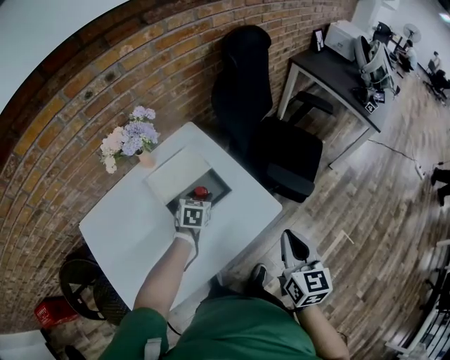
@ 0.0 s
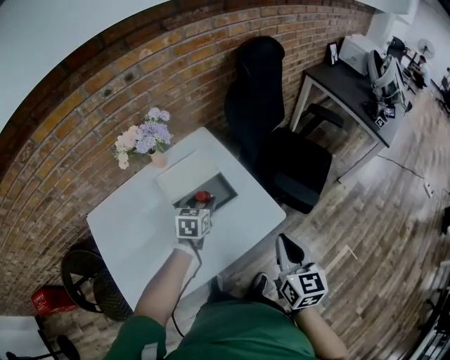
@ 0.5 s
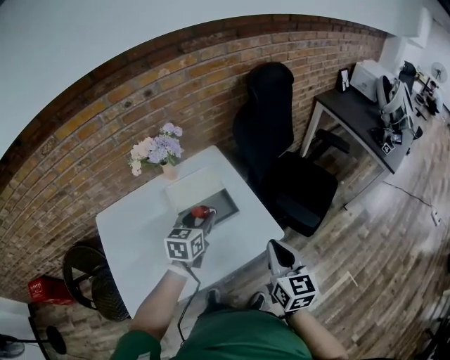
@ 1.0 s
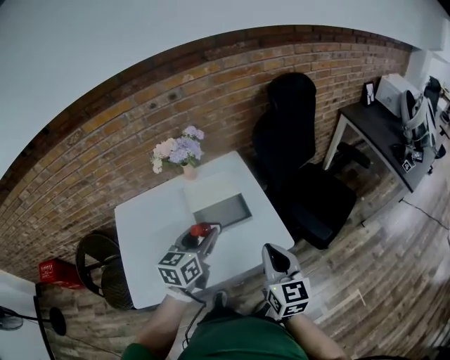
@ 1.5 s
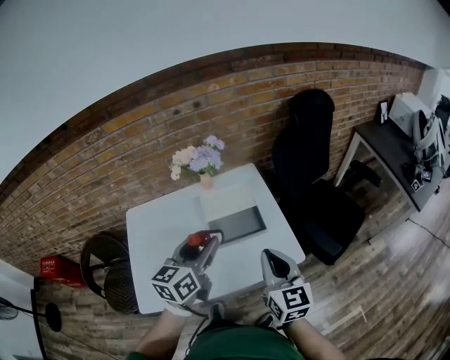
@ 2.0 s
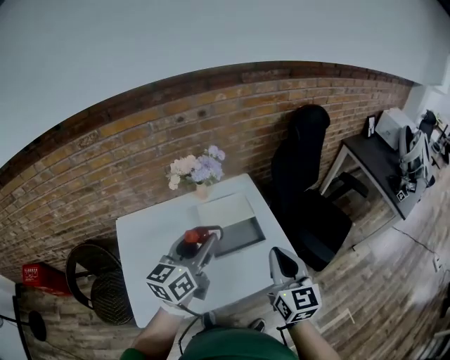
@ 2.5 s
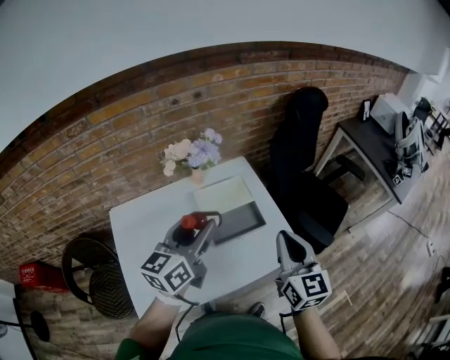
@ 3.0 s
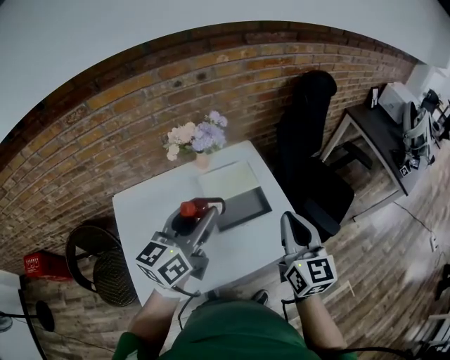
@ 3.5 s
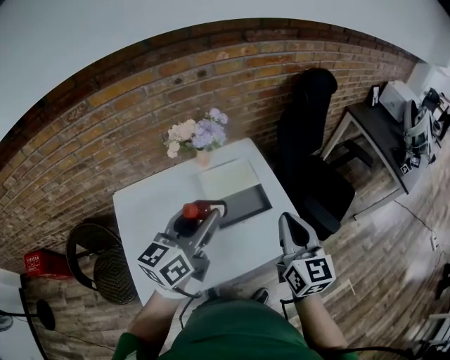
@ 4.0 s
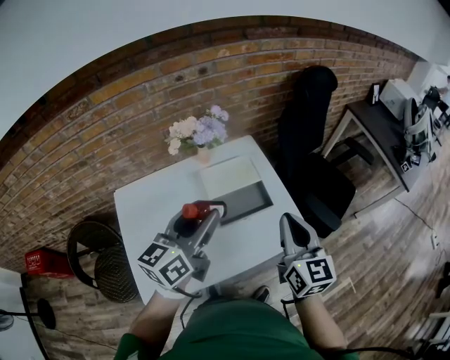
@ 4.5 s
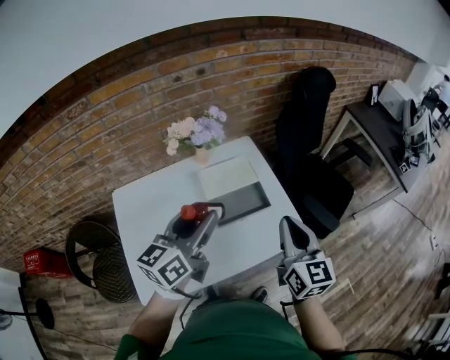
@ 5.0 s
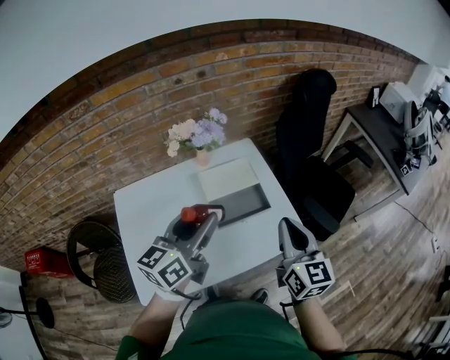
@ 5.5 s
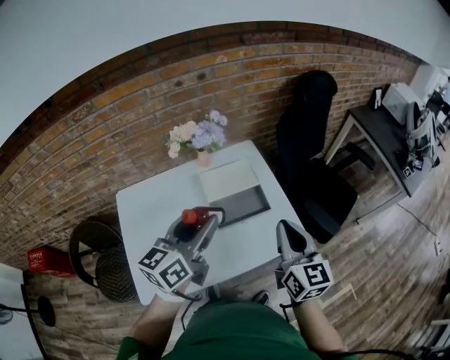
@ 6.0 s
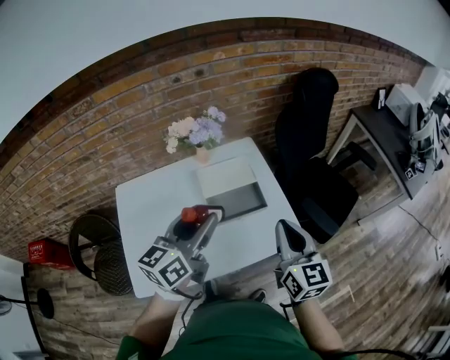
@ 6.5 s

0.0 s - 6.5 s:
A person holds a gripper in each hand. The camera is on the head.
0.0 s - 2.0 s: The left gripper moves upward and backward, roughly 30 cm, and tilts its fingers some 40 degrees upward; the right gripper moves to the left and upward, approximately 10 cm, and swivels some 30 degrees.
2.0 s - 4.5 s: The left gripper is displaced to the left by about 5 cm. Meanwhile the right gripper moves approximately 5 cm.
4.5 s - 6.5 s: The grippers stay close to where they were, moving slightly.

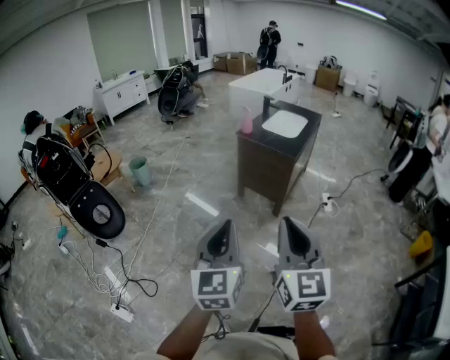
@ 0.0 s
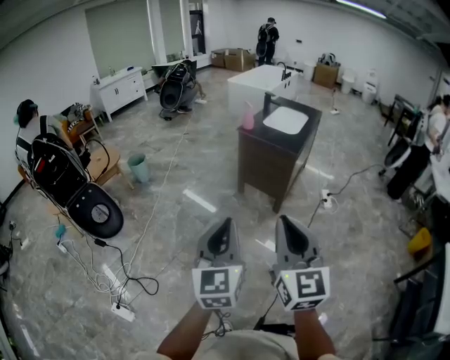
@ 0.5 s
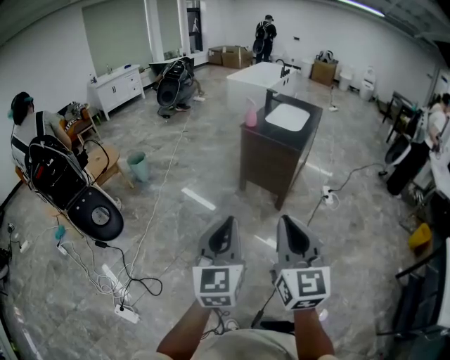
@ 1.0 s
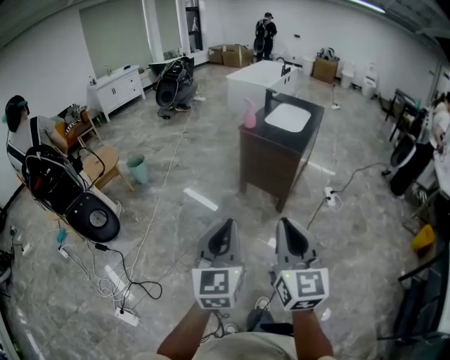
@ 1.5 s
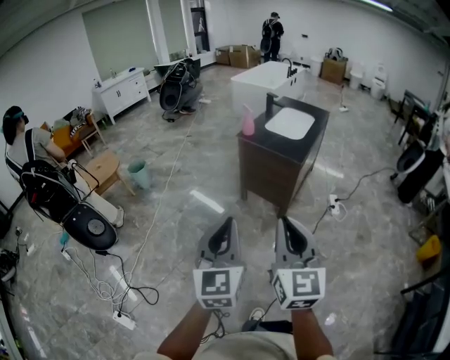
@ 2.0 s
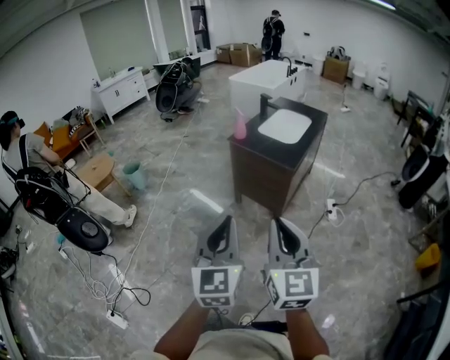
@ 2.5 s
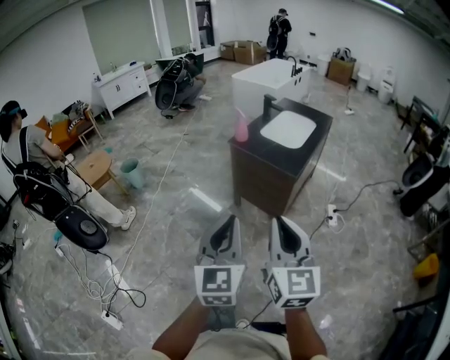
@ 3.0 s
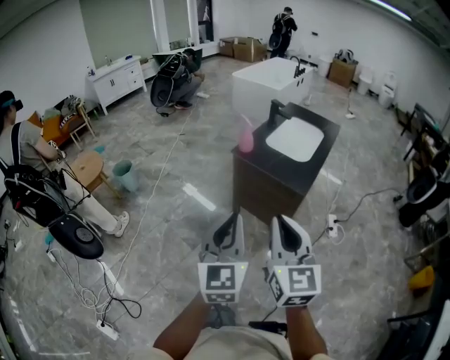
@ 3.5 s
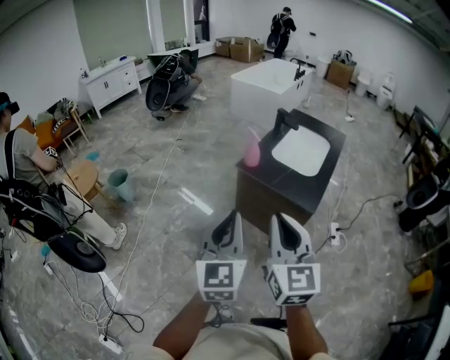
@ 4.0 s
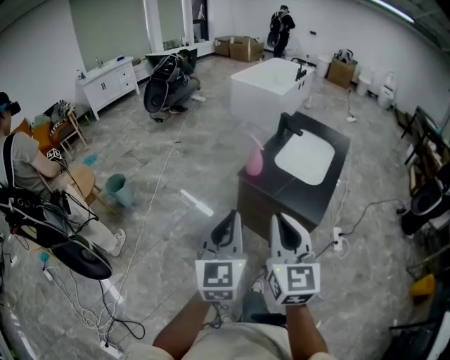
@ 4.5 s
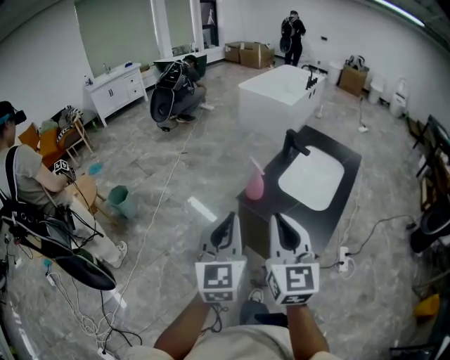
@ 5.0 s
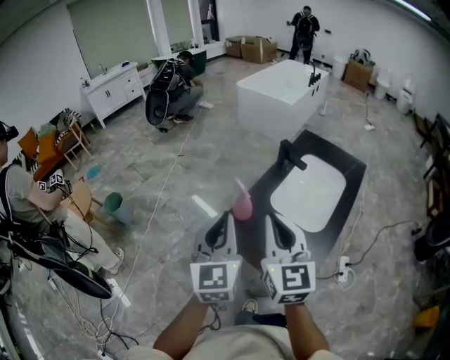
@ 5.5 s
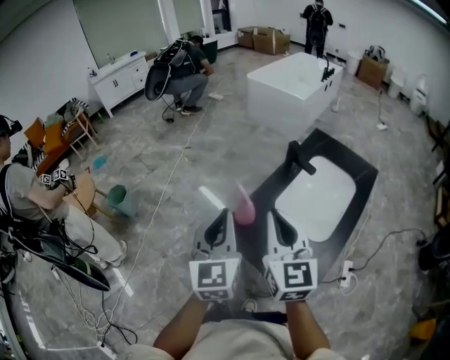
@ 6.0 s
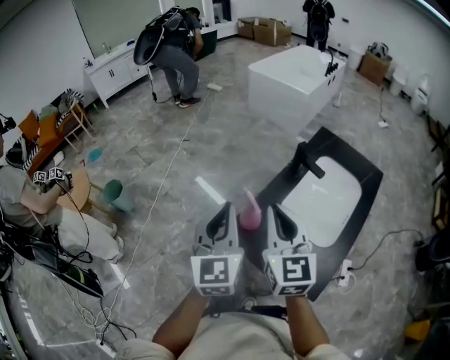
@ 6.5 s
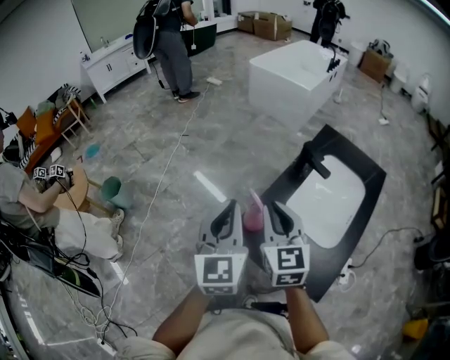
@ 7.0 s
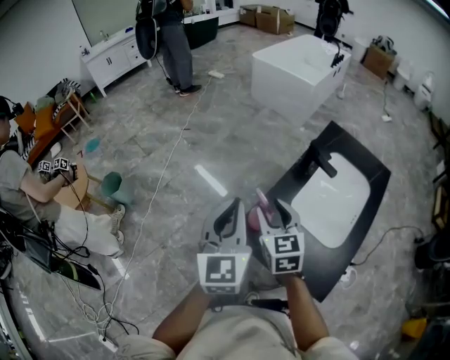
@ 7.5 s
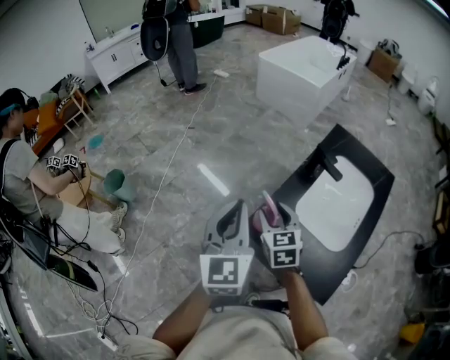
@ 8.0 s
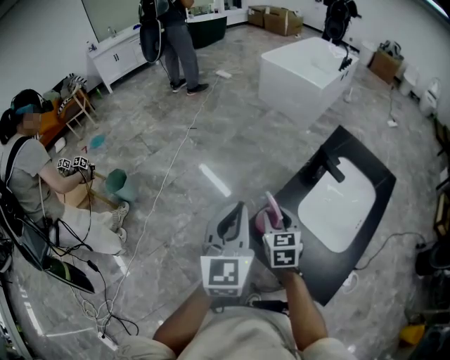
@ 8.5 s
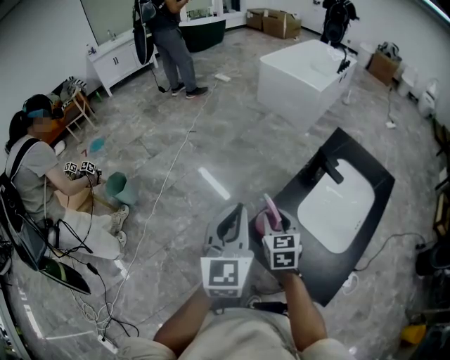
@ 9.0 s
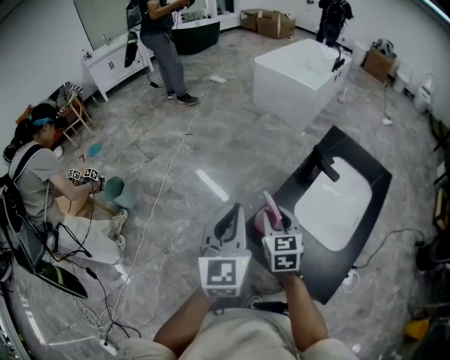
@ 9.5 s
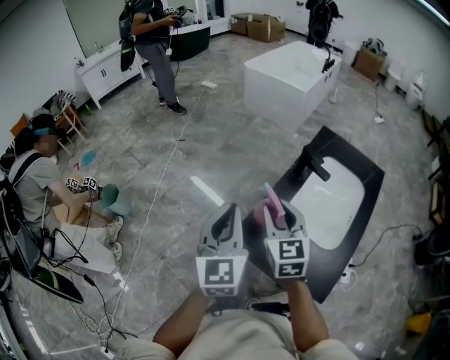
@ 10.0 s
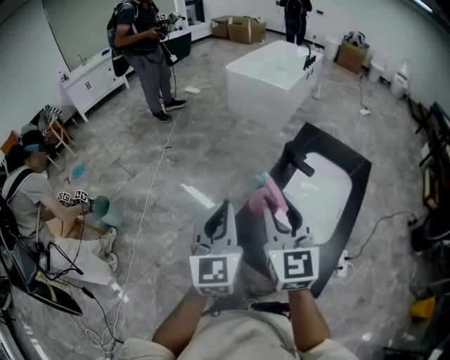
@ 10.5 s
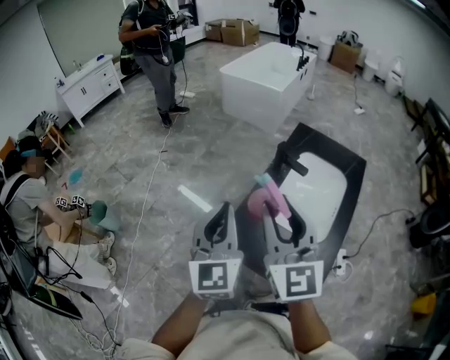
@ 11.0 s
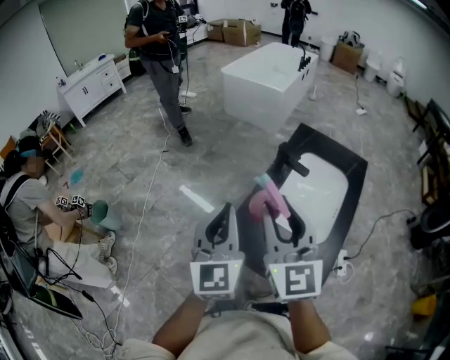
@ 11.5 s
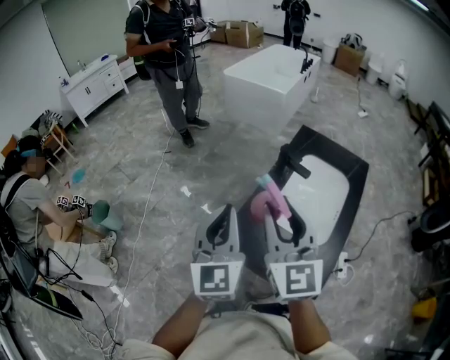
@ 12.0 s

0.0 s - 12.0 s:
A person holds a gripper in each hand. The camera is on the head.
0.0 s - 2.0 s: Both grippers move forward, about 15 cm.
2.0 s - 4.0 s: The grippers both shift forward by about 35 cm.
4.0 s - 6.0 s: The grippers both shift forward by some 35 cm.
6.0 s - 8.0 s: The right gripper shifts approximately 25 cm downward and forward, changes its angle by some 30 degrees, and opens, while the left gripper moves forward, some 10 cm.
8.0 s - 10.0 s: The right gripper heads upward, covering some 10 cm.
10.0 s - 12.0 s: The left gripper moves about 5 cm. The right gripper travels upward and backward by about 15 cm, and turns by approximately 20 degrees.

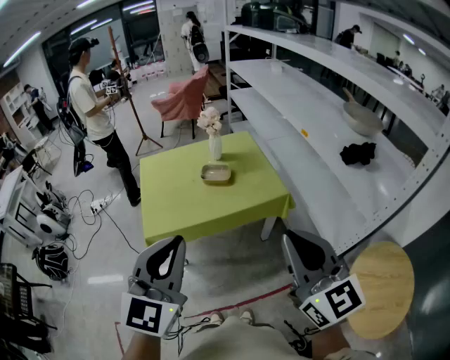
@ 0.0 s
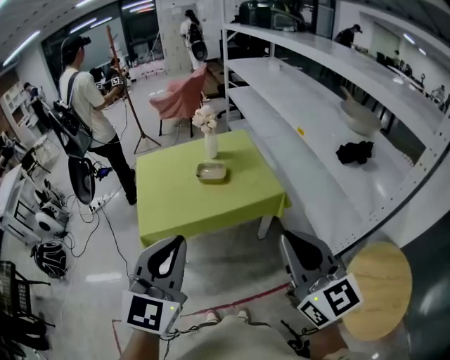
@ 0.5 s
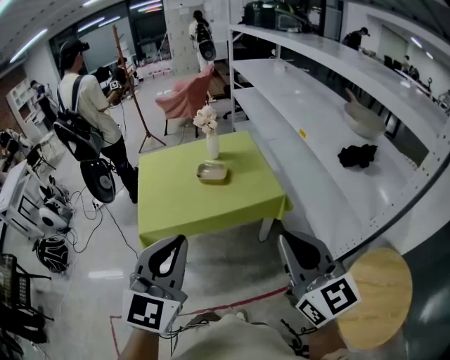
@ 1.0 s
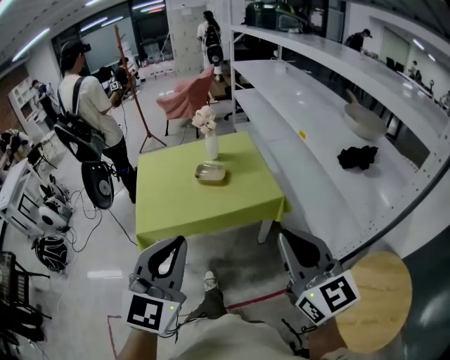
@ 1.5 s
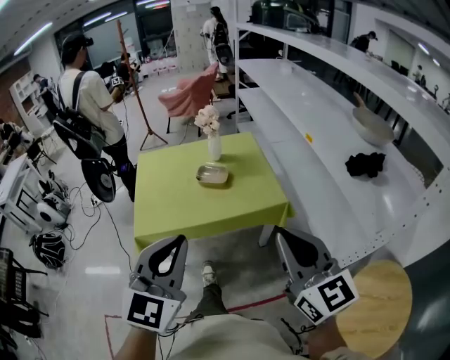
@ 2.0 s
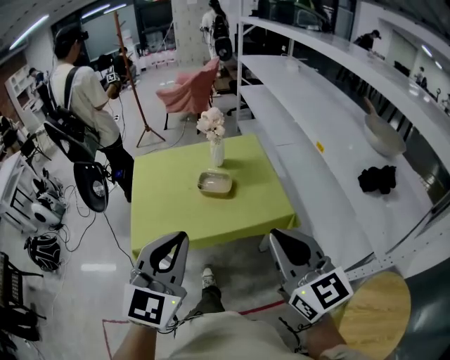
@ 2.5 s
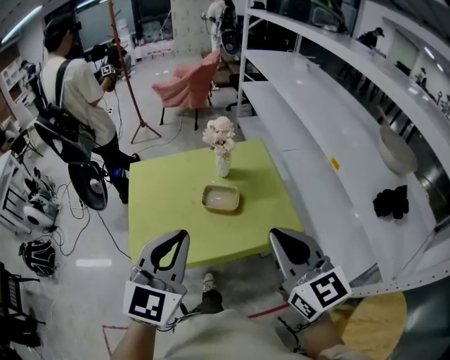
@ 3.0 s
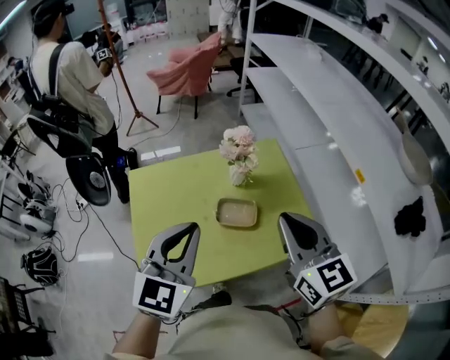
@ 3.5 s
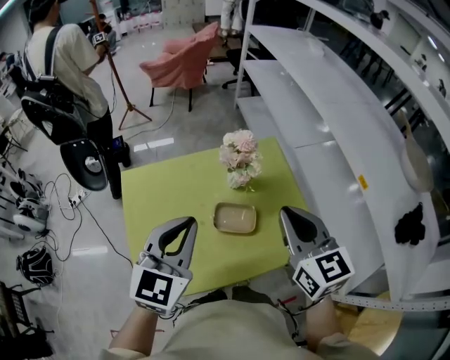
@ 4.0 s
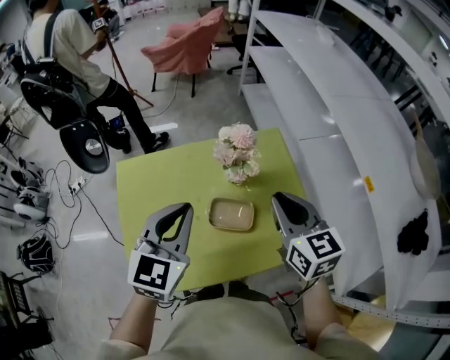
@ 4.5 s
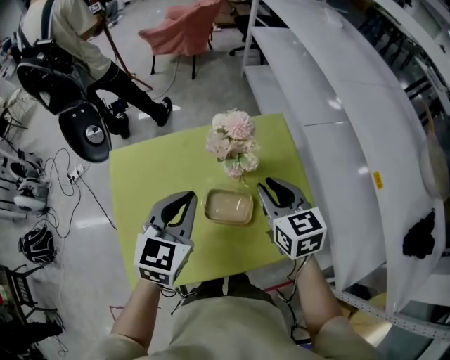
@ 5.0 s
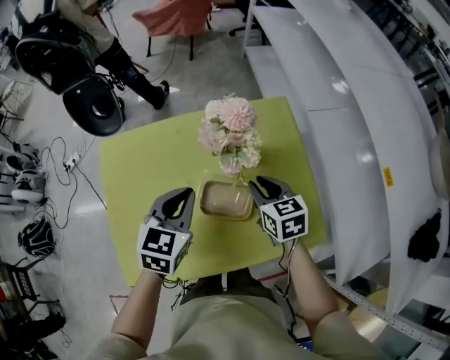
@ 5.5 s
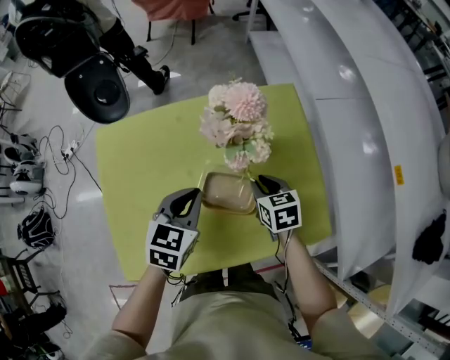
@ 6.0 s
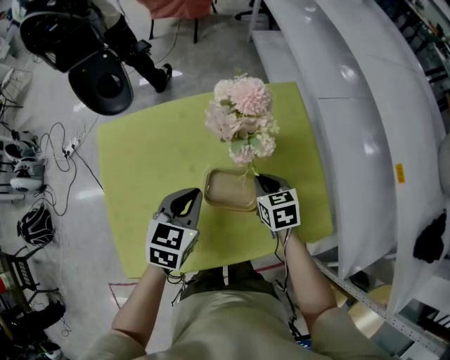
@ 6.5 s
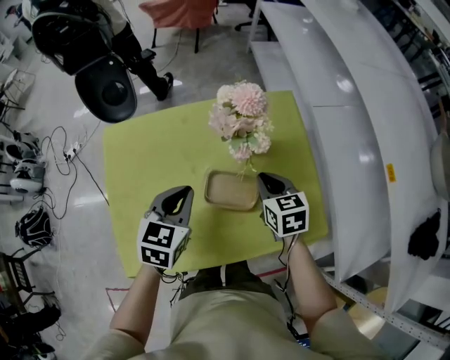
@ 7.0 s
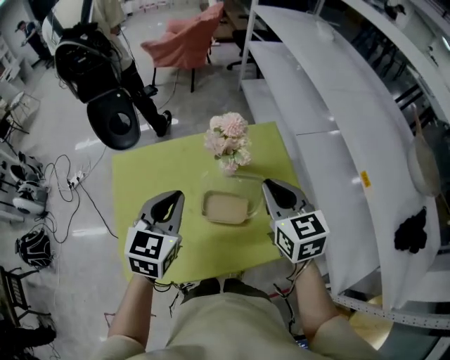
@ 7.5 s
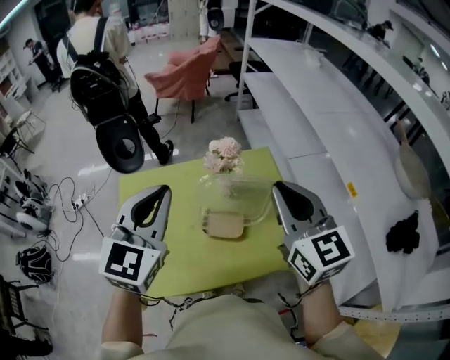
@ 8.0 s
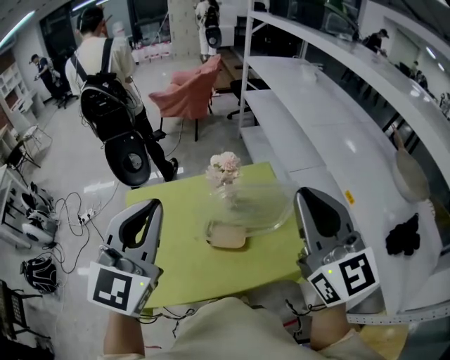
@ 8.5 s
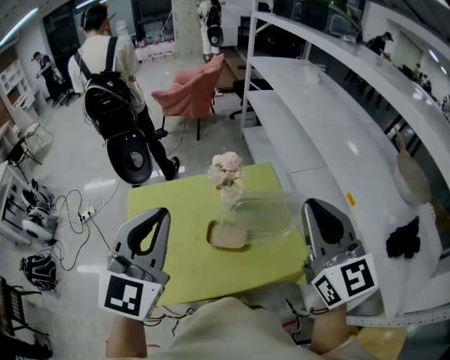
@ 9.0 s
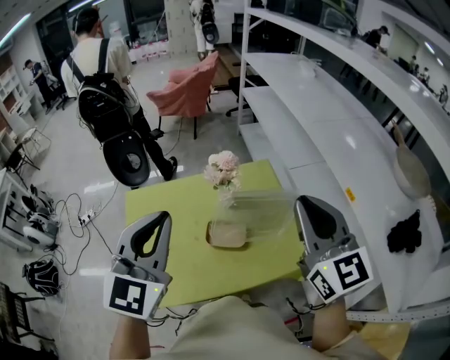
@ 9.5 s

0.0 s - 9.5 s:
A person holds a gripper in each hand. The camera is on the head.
0.0 s - 2.0 s: The left gripper shifts some 5 cm to the right, while the right gripper shifts roughly 10 cm forward and to the right.
2.0 s - 4.0 s: The pair of grippers is taken forward, some 50 cm.
4.0 s - 5.5 s: The grippers both shift downward and forward by approximately 25 cm. The left gripper changes its angle by about 20 degrees; the right gripper rotates roughly 30 degrees, and opens its fingers.
5.5 s - 7.5 s: The left gripper moves upward, roughly 10 cm. The right gripper moves upward, approximately 20 cm.
7.5 s - 9.5 s: The grippers both shift upward and backward by roughly 20 cm. The right gripper swivels about 30 degrees, while the left gripper rotates approximately 20 degrees.
